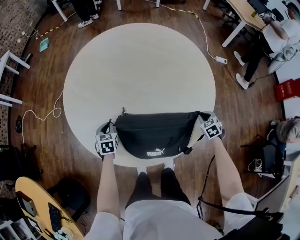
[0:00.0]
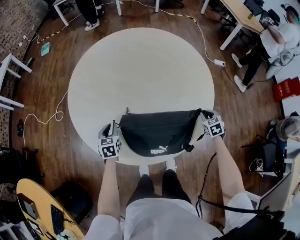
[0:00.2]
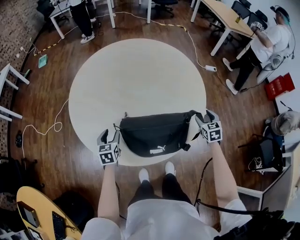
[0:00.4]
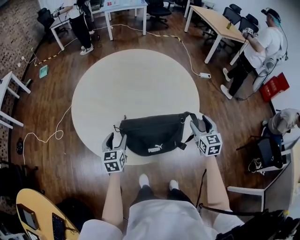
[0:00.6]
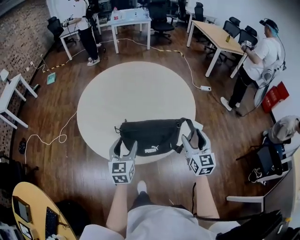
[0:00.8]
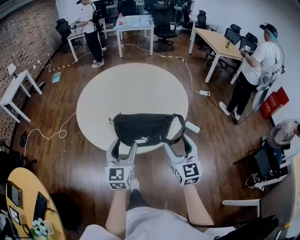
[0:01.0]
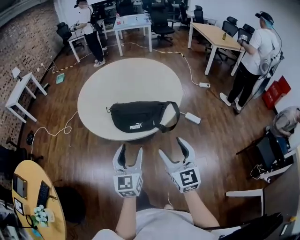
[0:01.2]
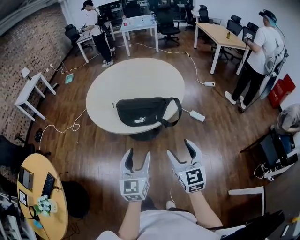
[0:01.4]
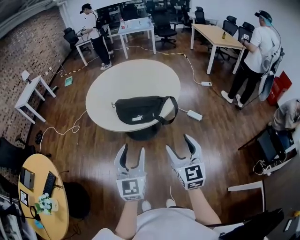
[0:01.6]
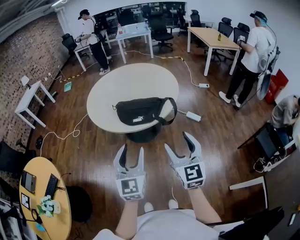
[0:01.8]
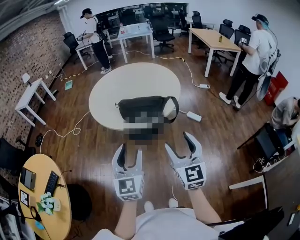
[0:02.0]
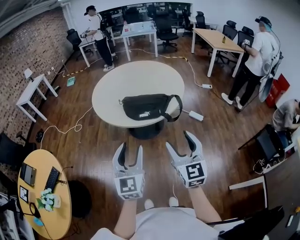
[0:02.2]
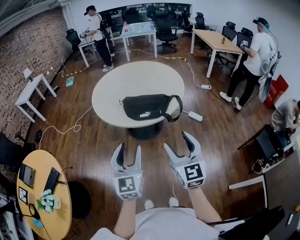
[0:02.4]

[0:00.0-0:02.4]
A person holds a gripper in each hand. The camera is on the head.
0:00.0 to 0:01.2: The right gripper moves backward and upward, approximately 60 cm, tips its fingers upward by approximately 60 degrees, and opens up, while the left gripper is displaced backward, upward and to the right by some 60 cm, tilts its fingers roughly 40 degrees upward, and opens its fingers.
0:01.2 to 0:02.4: The right gripper moves backward and upward, about 15 cm. Meanwhile the left gripper goes roughly 20 cm backward, upward and to the left.

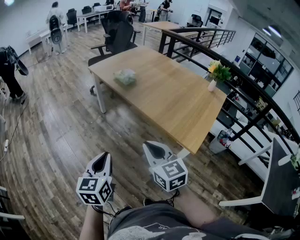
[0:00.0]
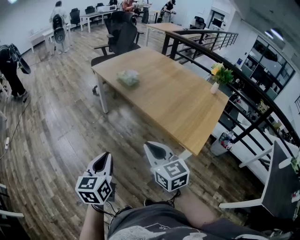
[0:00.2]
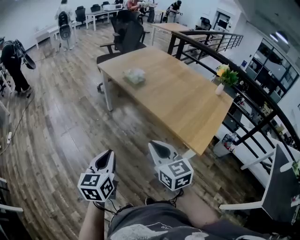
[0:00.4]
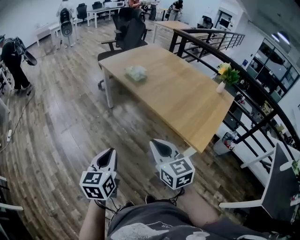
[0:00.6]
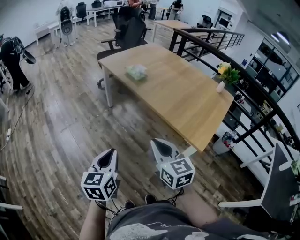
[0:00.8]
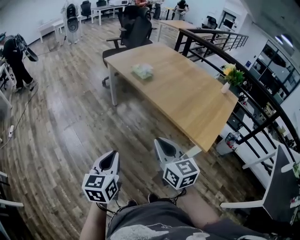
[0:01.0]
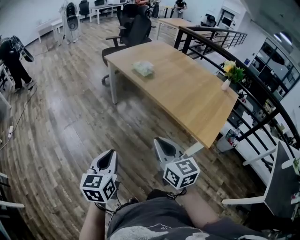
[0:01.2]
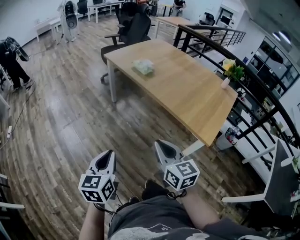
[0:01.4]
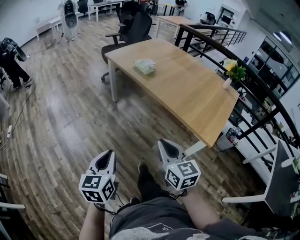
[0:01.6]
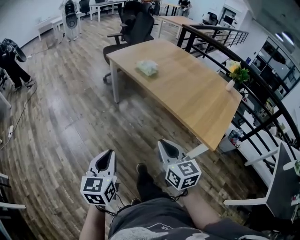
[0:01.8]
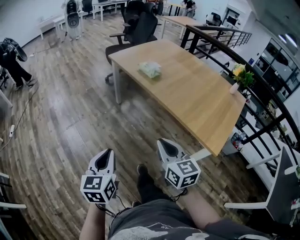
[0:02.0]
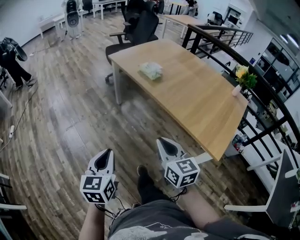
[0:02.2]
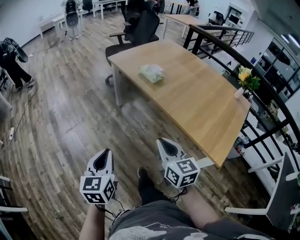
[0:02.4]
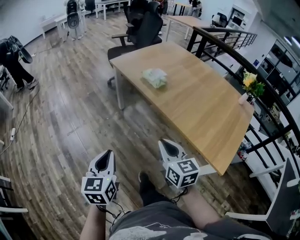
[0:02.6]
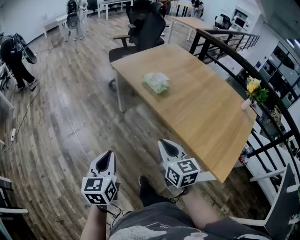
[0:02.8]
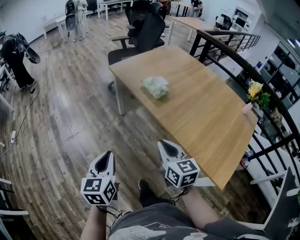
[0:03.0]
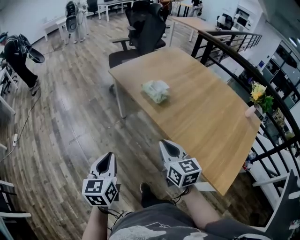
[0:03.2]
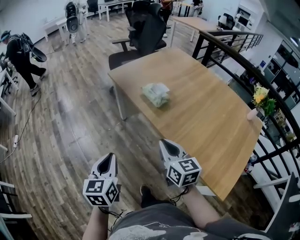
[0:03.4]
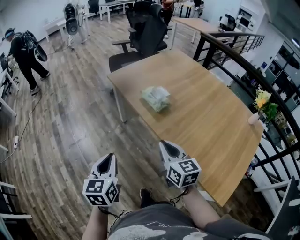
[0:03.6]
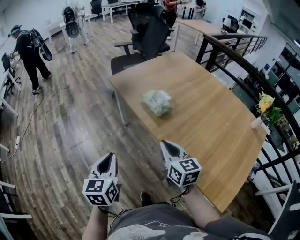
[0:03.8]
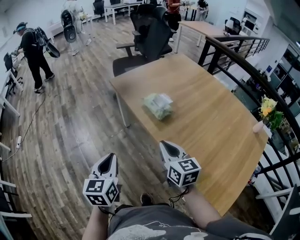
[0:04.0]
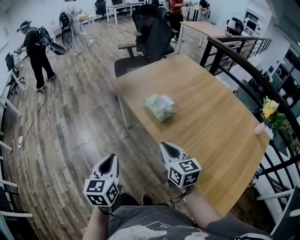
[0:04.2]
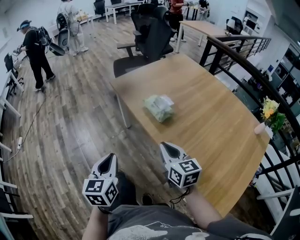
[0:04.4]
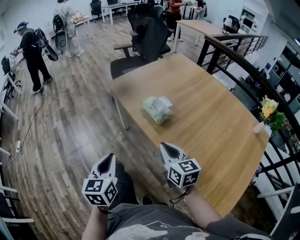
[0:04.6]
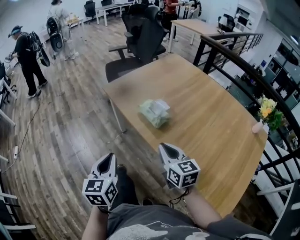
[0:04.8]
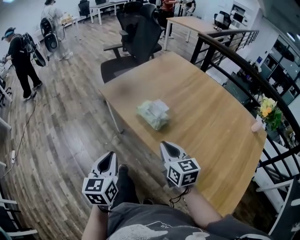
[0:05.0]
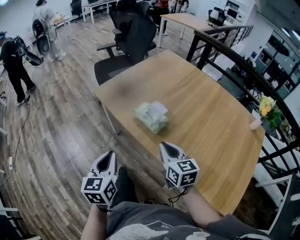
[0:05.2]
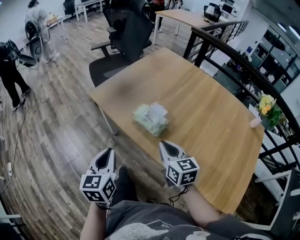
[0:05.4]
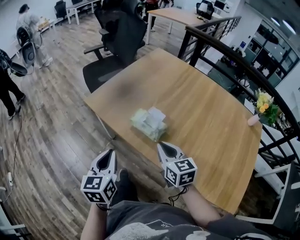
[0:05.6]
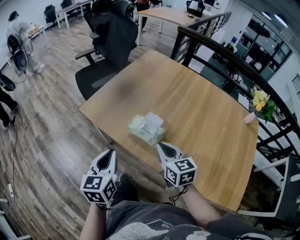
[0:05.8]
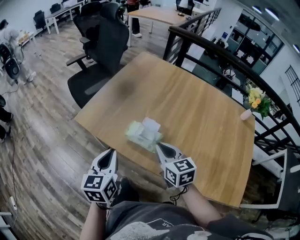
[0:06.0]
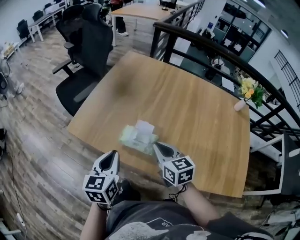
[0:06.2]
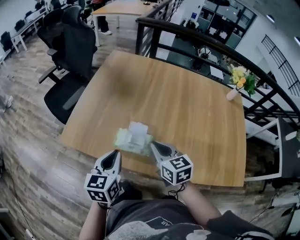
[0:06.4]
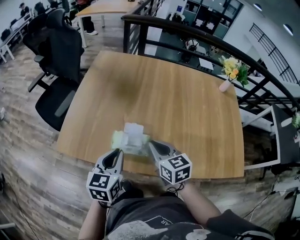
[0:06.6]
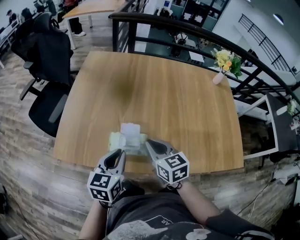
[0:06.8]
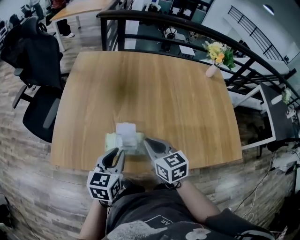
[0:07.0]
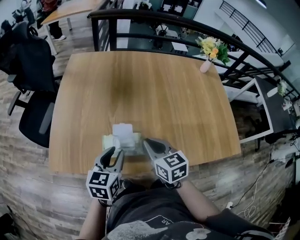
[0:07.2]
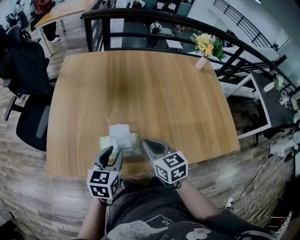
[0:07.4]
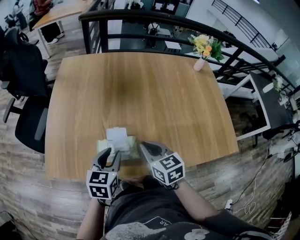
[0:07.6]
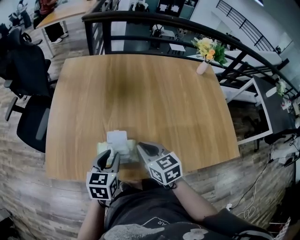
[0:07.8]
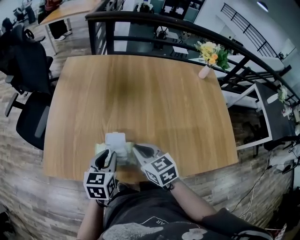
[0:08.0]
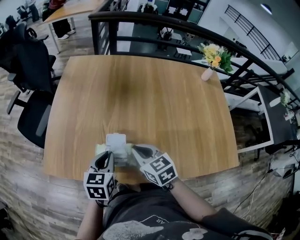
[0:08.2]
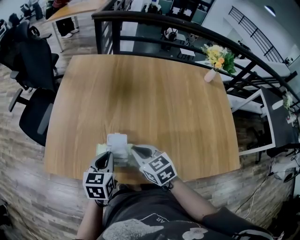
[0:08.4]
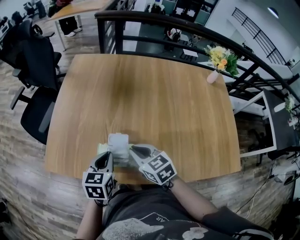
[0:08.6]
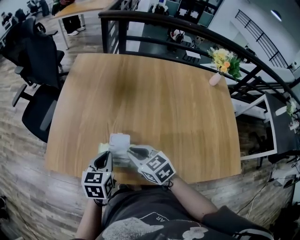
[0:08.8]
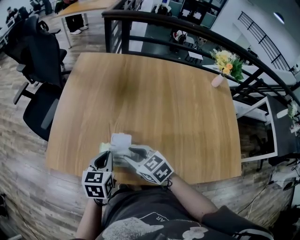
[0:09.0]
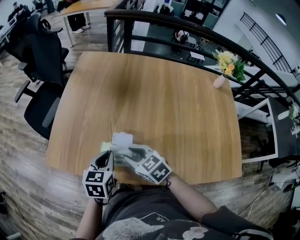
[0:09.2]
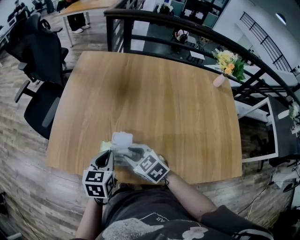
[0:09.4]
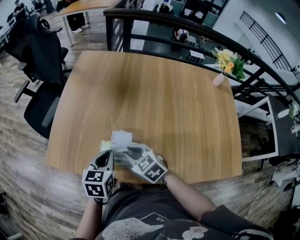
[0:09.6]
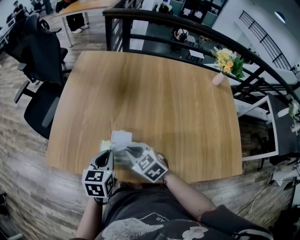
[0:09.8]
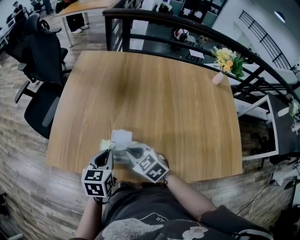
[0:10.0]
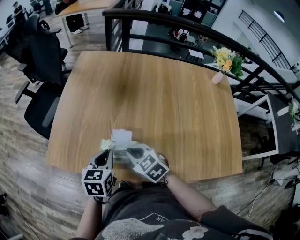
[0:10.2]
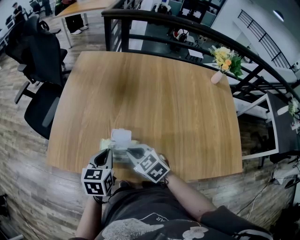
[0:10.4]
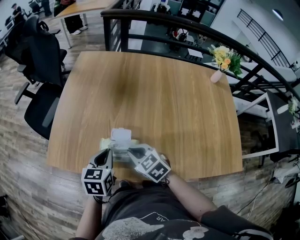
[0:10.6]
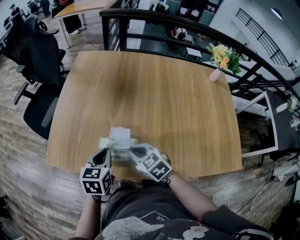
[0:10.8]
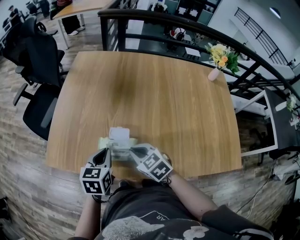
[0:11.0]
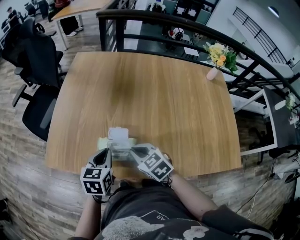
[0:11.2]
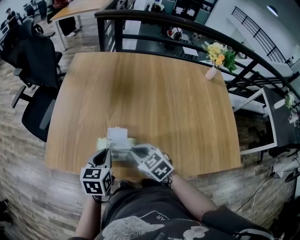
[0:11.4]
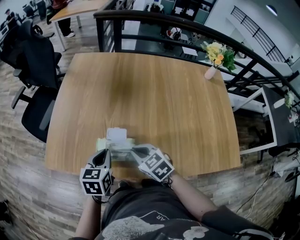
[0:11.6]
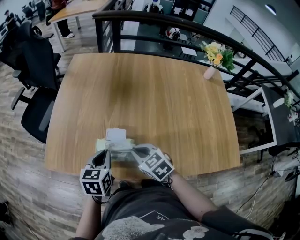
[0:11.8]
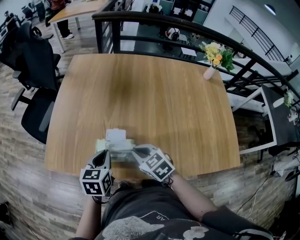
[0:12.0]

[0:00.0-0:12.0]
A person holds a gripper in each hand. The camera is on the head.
0:00.0 to 0:01.6: The right gripper travels to the left by roughly 5 cm, while the left gripper heads to the left, covering some 10 cm.
0:01.6 to 0:03.0: Both grippers travel together forward, some 25 cm.
0:03.0 to 0:04.4: Both grippers travel together forward, approximately 15 cm.
0:04.4 to 0:06.0: The right gripper shifts by approximately 20 cm, and turns by roughly 20 degrees. Meanwhile the left gripper shifts by roughly 30 cm, and rotates about 30 degrees.
0:06.0 to 0:07.6: The right gripper shifts by approximately 10 cm, and changes its angle by some 30 degrees. Meanwhile the left gripper ends up approximately 20 cm from where it was, turns by about 40 degrees, and opens its fingers.
0:07.6 to 0:09.0: The right gripper is displaced to the left by roughly 5 cm, swivels some 30 degrees, and opens, while the left gripper closes up.
0:09.0 to 0:10.4: The right gripper closes up.
0:10.4 to 0:12.0: The grippers make only small movements.

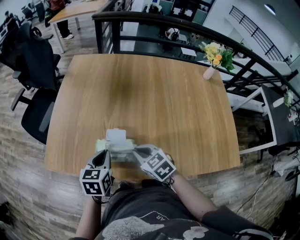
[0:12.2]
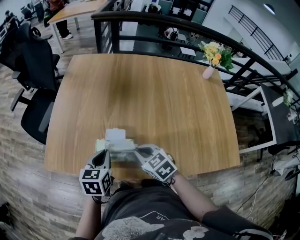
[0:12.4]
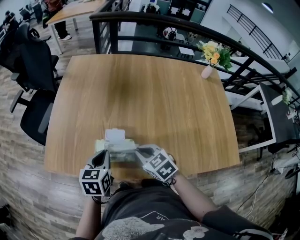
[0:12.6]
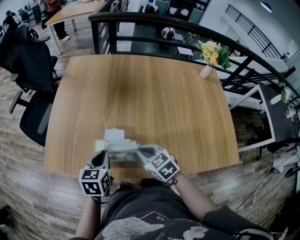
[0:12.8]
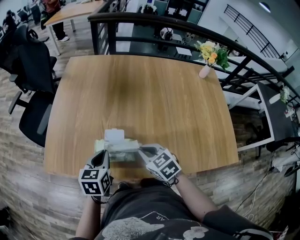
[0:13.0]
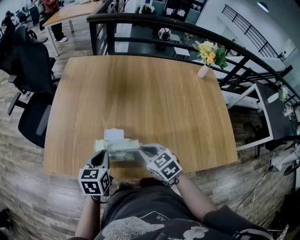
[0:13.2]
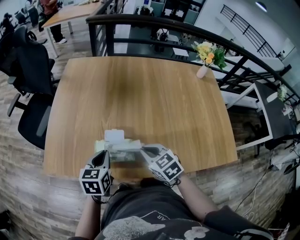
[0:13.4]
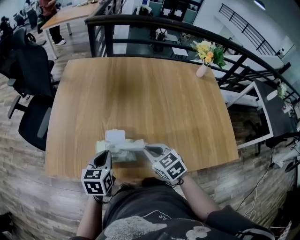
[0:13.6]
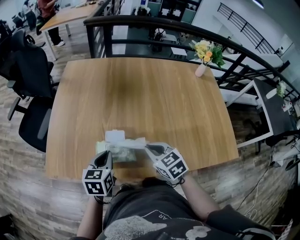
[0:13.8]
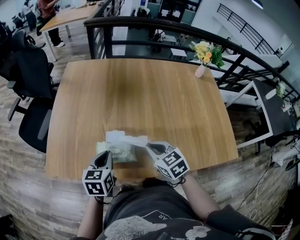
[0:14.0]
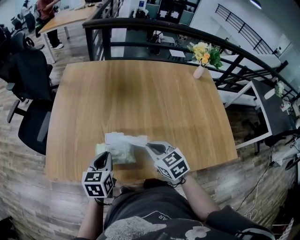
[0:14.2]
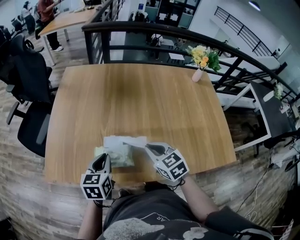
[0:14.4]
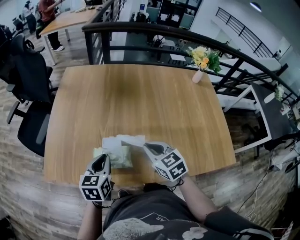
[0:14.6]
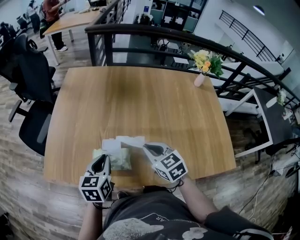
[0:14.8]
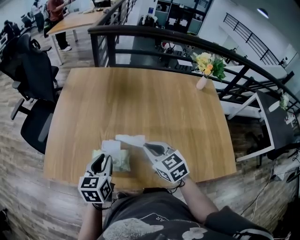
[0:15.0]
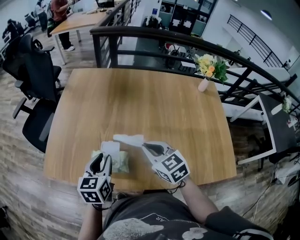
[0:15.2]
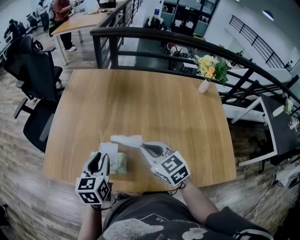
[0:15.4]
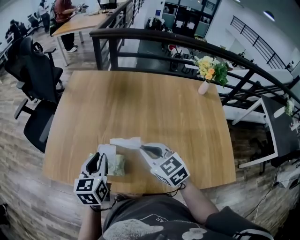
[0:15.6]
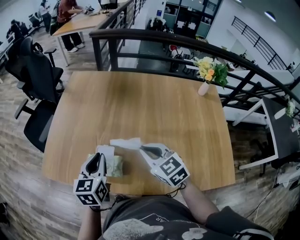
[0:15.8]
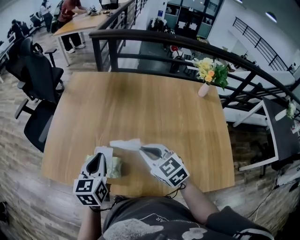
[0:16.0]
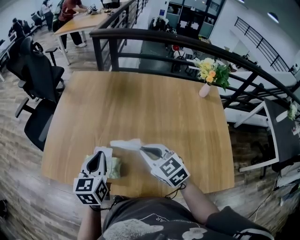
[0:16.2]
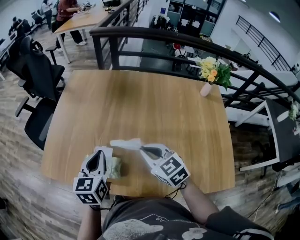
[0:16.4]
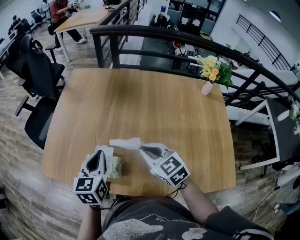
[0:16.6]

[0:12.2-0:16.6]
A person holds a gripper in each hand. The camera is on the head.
0:12.2 to 0:13.6: The right gripper ends up roughly 5 cm from where it was.
0:13.6 to 0:15.2: The left gripper travels upward by some 5 cm, and opens its fingers; the right gripper heads upward and forward, covering approximately 10 cm.
0:15.2 to 0:16.6: The left gripper shifts by approximately 5 cm, and closes its fingers.

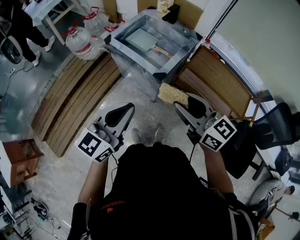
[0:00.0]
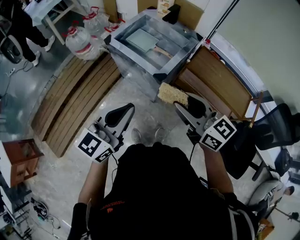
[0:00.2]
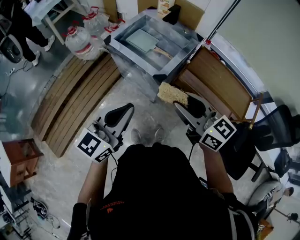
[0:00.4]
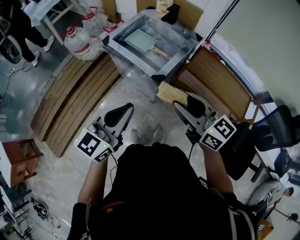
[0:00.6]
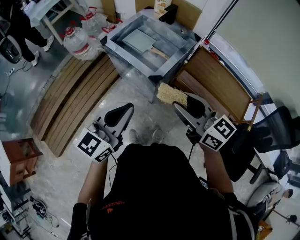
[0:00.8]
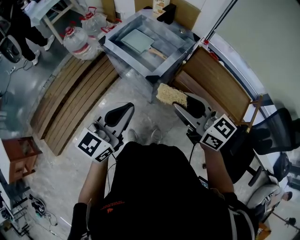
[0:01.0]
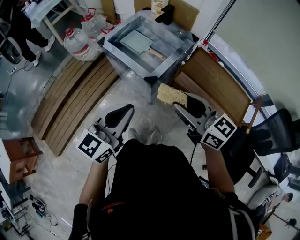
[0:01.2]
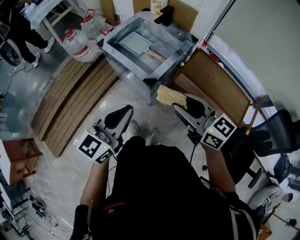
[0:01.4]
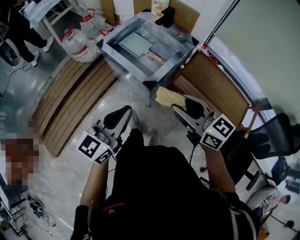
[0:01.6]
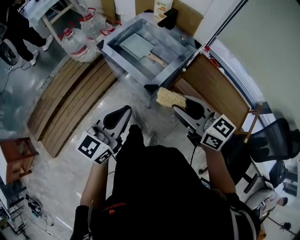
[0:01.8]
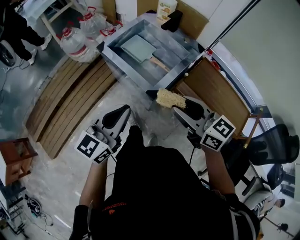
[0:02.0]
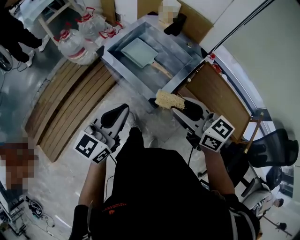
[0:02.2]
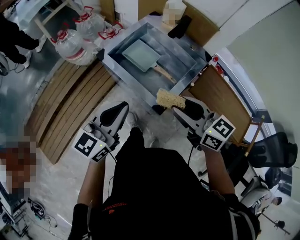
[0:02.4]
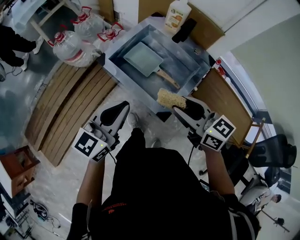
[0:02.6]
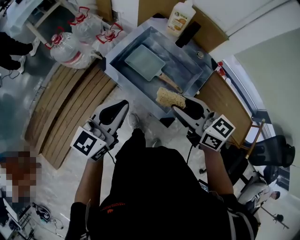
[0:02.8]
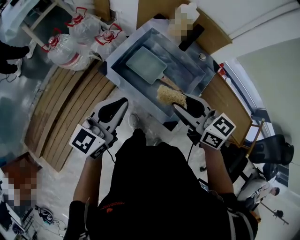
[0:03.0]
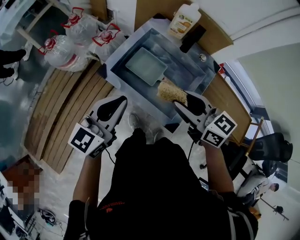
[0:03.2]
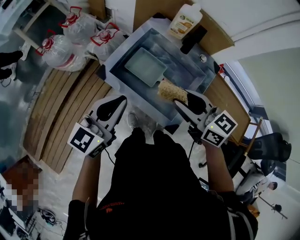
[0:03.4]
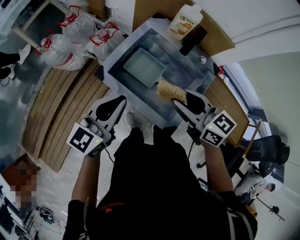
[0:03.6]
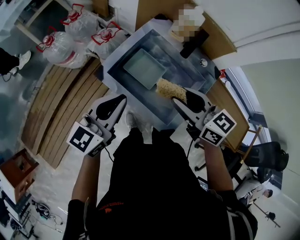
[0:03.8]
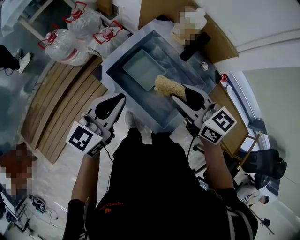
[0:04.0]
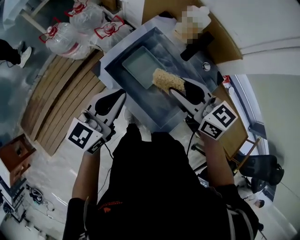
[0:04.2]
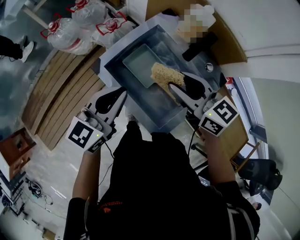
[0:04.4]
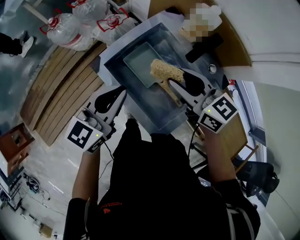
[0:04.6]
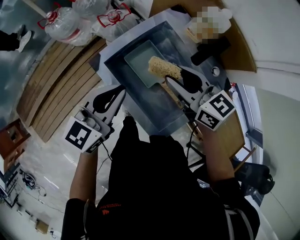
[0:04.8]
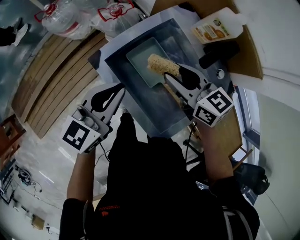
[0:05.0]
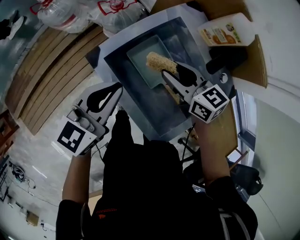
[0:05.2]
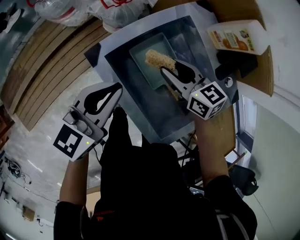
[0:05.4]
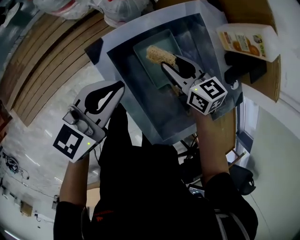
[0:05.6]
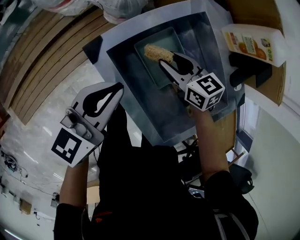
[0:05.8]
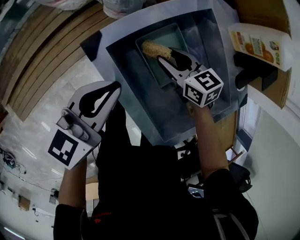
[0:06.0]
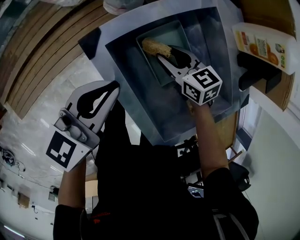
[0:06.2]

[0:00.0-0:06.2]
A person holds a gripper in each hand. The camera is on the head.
0:00.0 to 0:01.6: The left gripper goes about 5 cm to the right. The right gripper is displaced to the right and forward by some 10 cm.
0:01.6 to 0:03.2: The grippers both shift forward by some 35 cm.
0:03.2 to 0:04.6: The left gripper is displaced forward and to the right by approximately 10 cm, while the right gripper heads forward, covering some 15 cm.
0:04.6 to 0:06.2: The right gripper travels downward by about 30 cm, and swivels some 30 degrees. Meanwhile the left gripper moves downward and to the left, some 15 cm.
